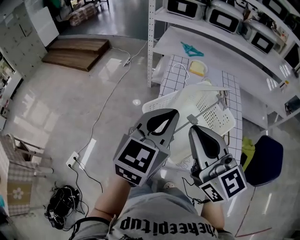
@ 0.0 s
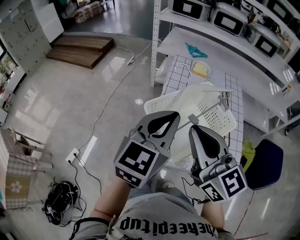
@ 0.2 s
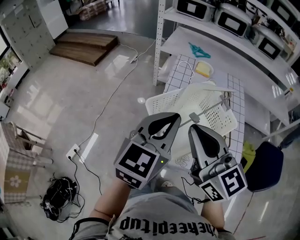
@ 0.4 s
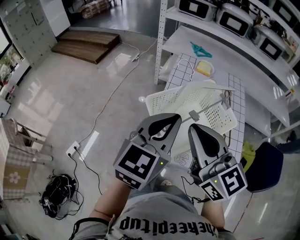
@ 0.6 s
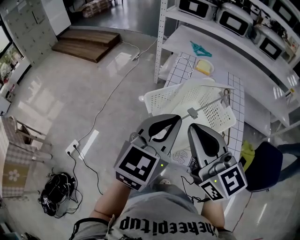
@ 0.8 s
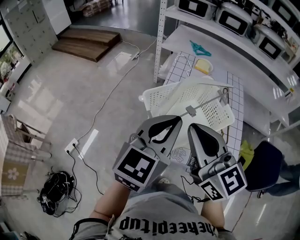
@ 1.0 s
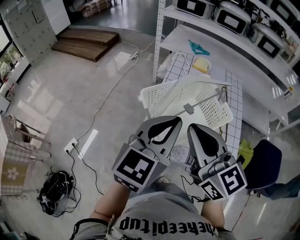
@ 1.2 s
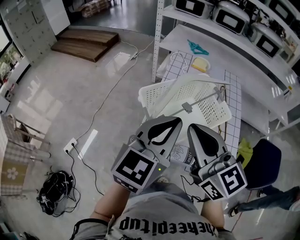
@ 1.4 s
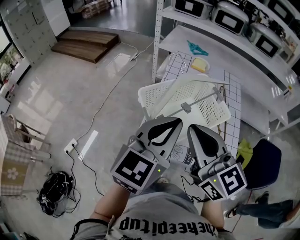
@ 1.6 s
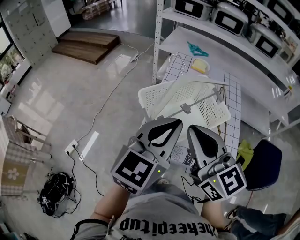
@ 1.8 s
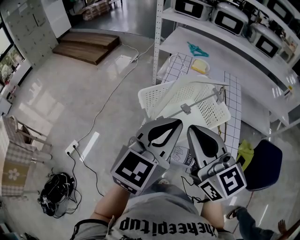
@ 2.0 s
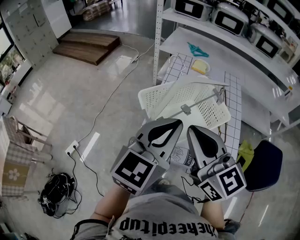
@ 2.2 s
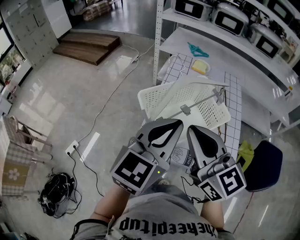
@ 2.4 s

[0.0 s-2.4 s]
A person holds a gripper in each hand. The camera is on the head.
0.0 to 1.2 s: The left gripper travels backward by some 5 cm.
1.2 to 2.4 s: The grippers stay close to where they were, moving slightly.

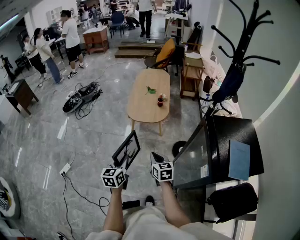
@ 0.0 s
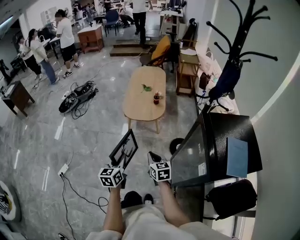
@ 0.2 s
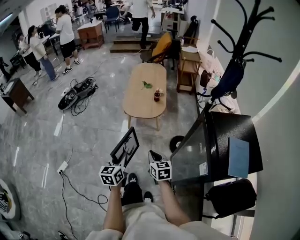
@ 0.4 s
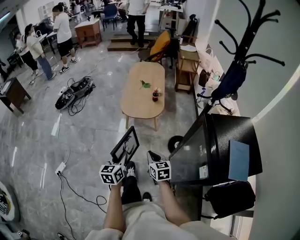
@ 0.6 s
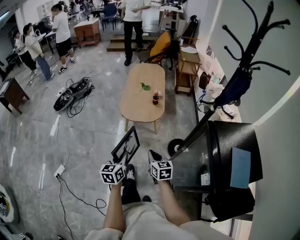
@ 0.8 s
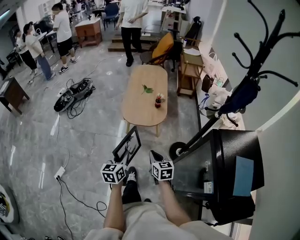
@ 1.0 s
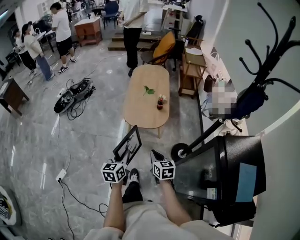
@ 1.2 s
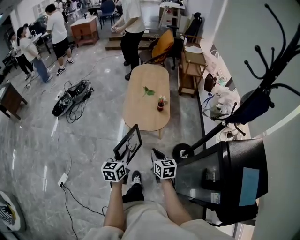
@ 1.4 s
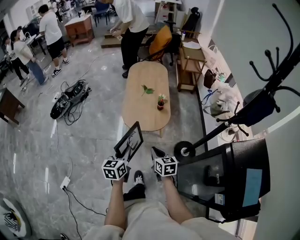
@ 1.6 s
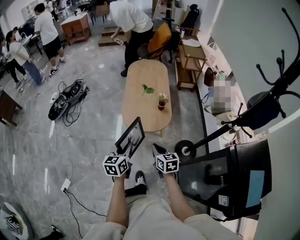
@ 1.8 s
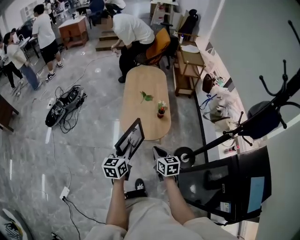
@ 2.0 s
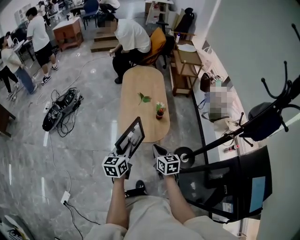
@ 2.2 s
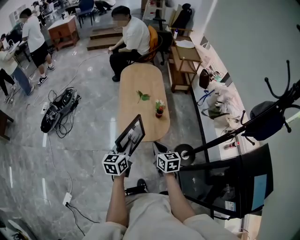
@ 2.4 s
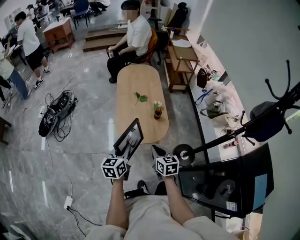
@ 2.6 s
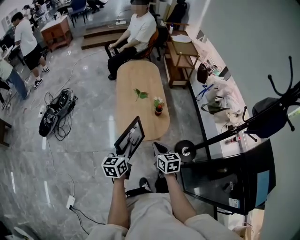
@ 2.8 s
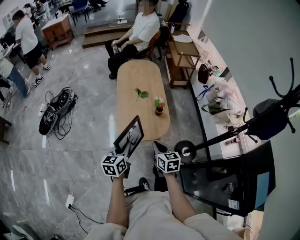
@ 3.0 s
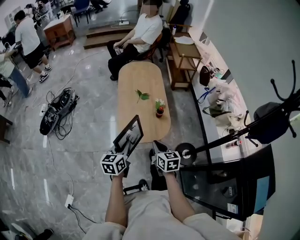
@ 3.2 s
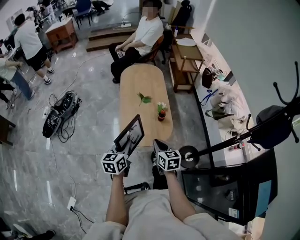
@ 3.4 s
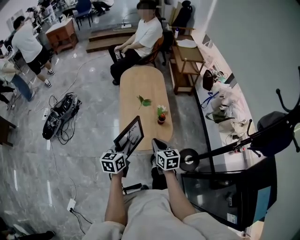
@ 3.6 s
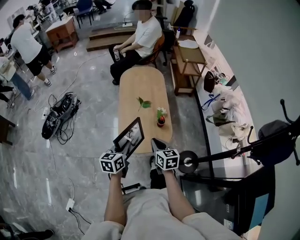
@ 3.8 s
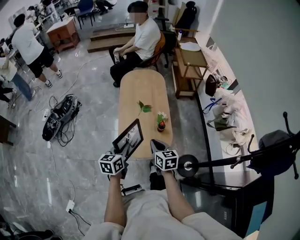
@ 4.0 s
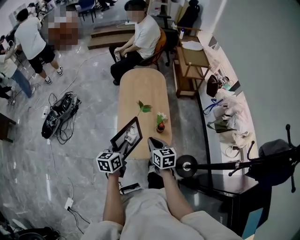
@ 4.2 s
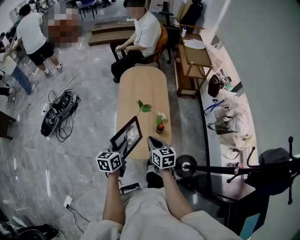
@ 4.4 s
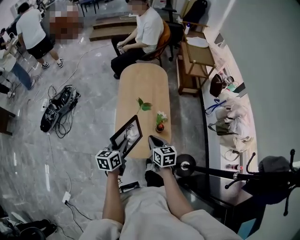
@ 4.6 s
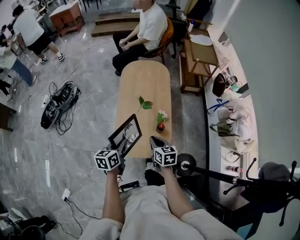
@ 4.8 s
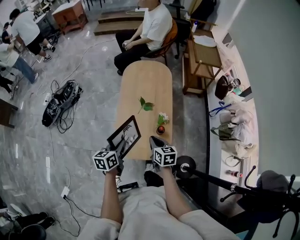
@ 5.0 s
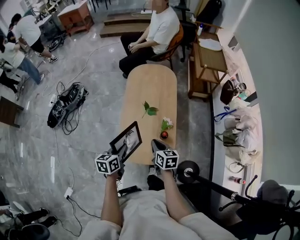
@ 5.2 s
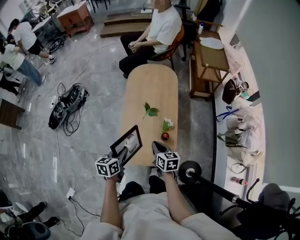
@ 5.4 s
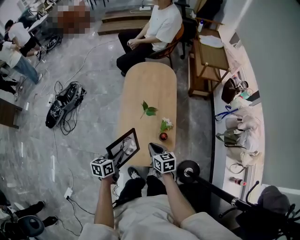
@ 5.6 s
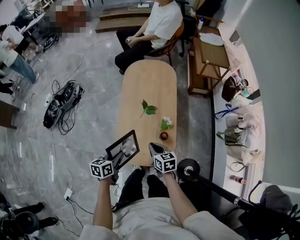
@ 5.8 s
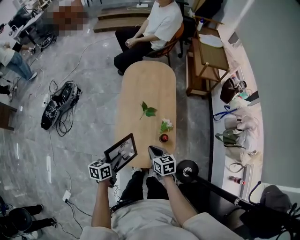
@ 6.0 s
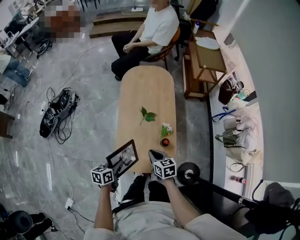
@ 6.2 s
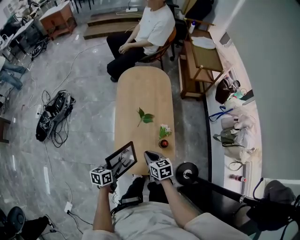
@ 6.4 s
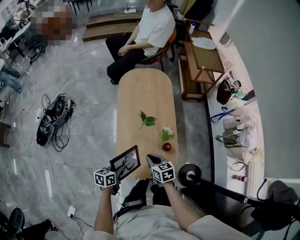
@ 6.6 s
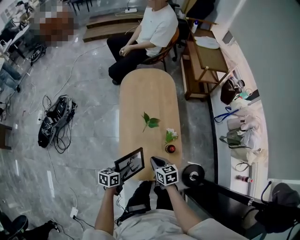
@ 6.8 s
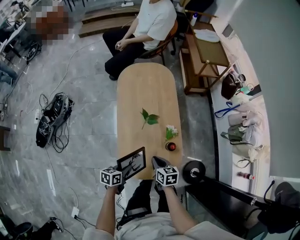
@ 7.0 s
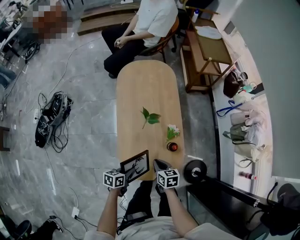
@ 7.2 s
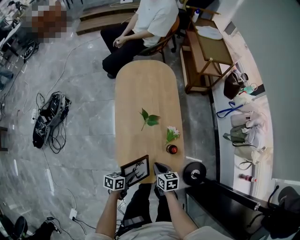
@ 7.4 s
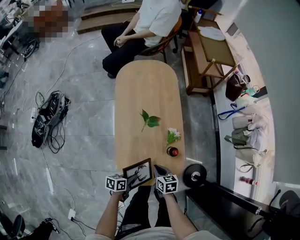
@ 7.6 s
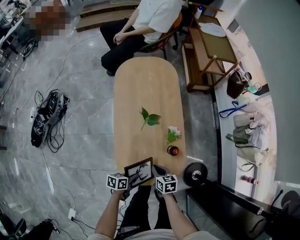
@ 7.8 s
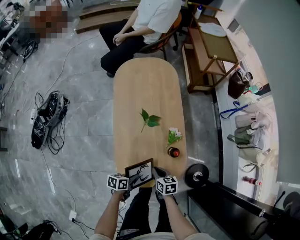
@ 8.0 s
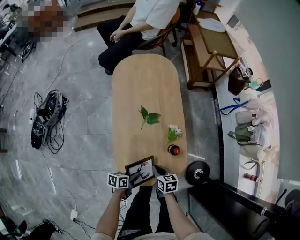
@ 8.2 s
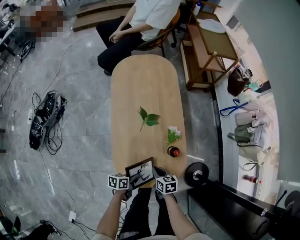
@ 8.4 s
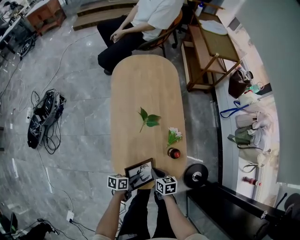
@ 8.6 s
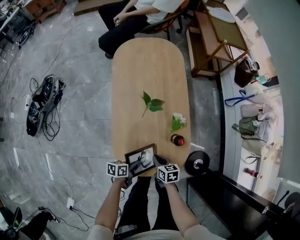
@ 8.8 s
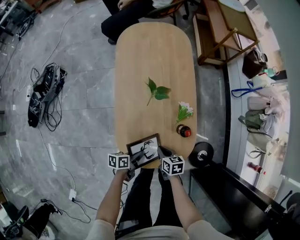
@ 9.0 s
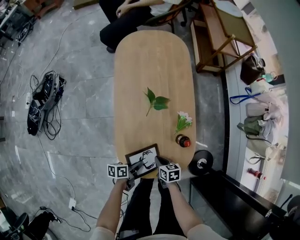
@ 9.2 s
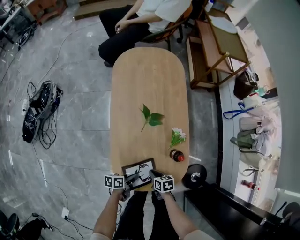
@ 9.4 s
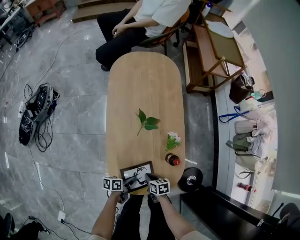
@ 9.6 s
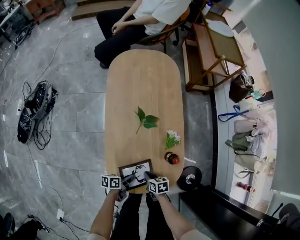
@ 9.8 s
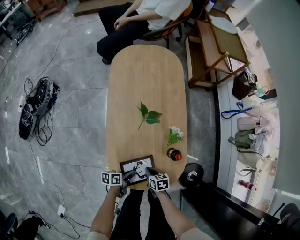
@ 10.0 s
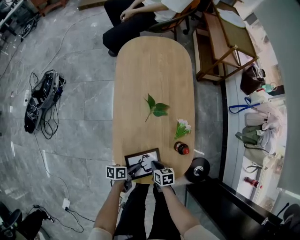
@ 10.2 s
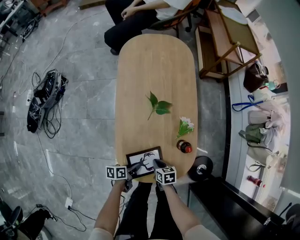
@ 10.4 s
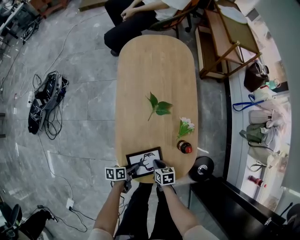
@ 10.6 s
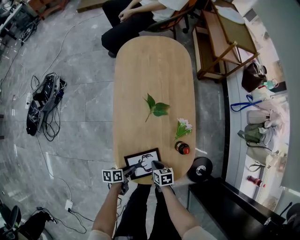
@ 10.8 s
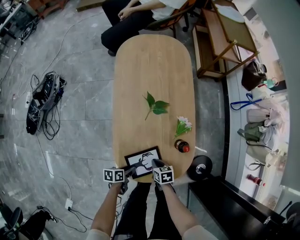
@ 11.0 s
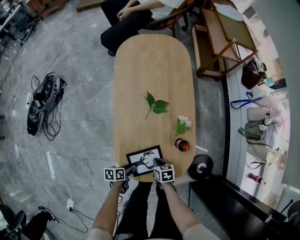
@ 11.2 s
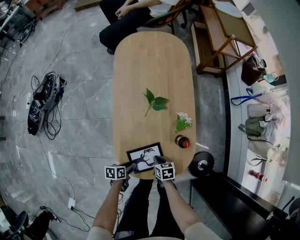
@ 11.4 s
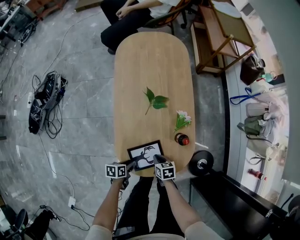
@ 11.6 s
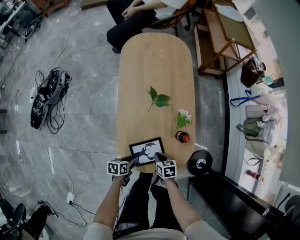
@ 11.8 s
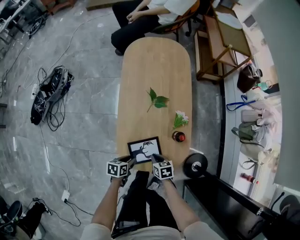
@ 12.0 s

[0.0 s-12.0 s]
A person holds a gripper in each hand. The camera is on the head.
0.0 to 1.6 s: Both grippers move forward, some 30 cm.
1.6 to 3.0 s: The two grippers go about 20 cm forward.
3.0 to 4.4 s: The grippers both shift forward by about 20 cm.
4.4 to 6.0 s: The grippers both shift downward and forward by some 15 cm.
6.0 to 7.6 s: The grippers both shift downward by approximately 20 cm. The left gripper swivels approximately 30 degrees.
7.6 to 9.0 s: Both grippers travel together downward, some 10 cm.
9.0 to 10.4 s: The right gripper shifts some 5 cm downward; the left gripper changes place by roughly 5 cm, and opens up.
10.4 to 12.0 s: Both grippers move upward, roughly 10 cm. The left gripper changes its angle by some 20 degrees.

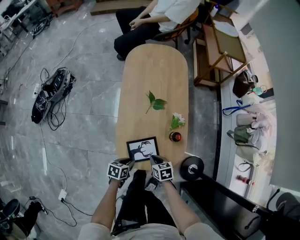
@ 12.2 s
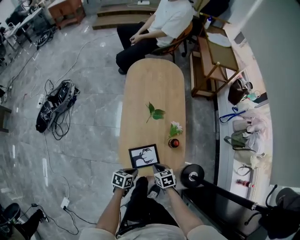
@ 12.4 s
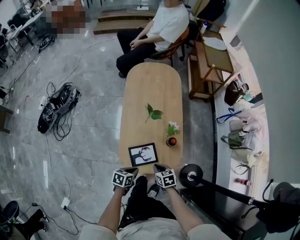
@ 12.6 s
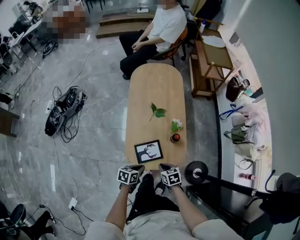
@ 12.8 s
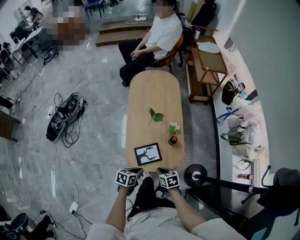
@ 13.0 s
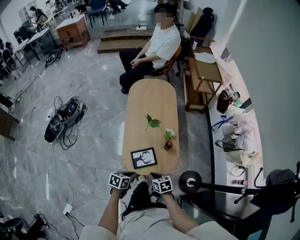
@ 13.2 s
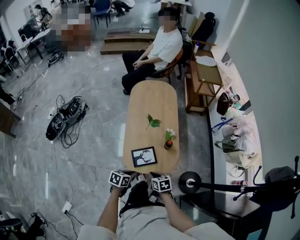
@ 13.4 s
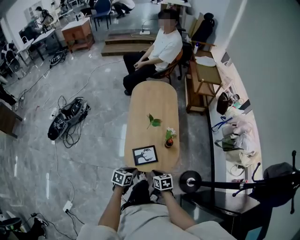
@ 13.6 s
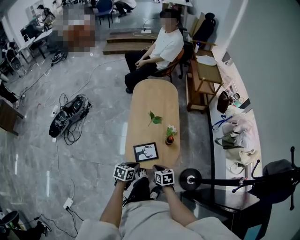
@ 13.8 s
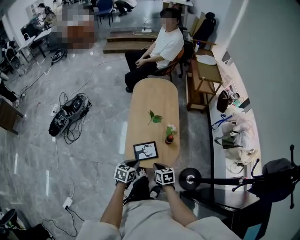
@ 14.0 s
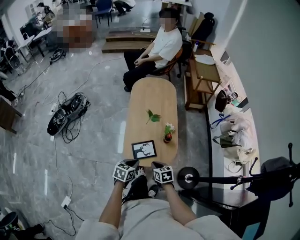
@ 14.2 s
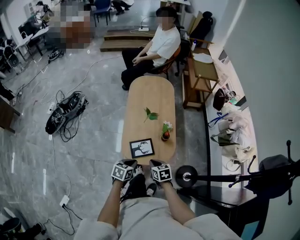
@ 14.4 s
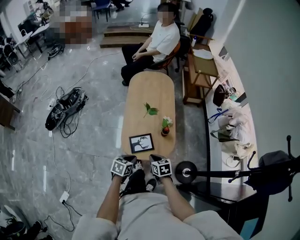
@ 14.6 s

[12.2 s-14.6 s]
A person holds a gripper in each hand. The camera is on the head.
12.2 to 13.4 s: Both grippers travel together upward and backward, about 25 cm.
13.4 to 14.6 s: The right gripper ends up roughly 5 cm from where it was.

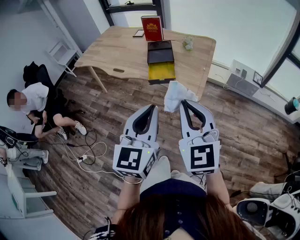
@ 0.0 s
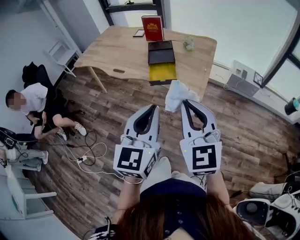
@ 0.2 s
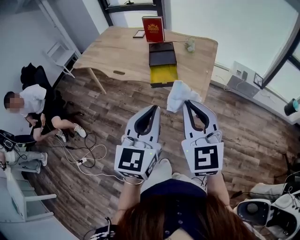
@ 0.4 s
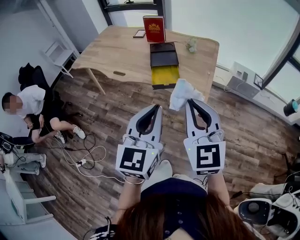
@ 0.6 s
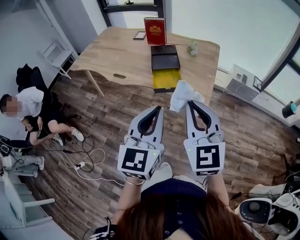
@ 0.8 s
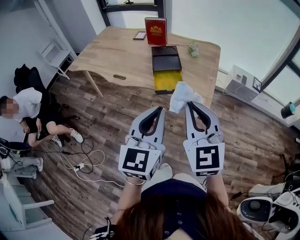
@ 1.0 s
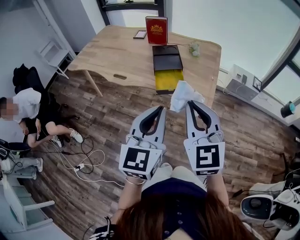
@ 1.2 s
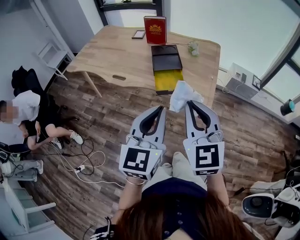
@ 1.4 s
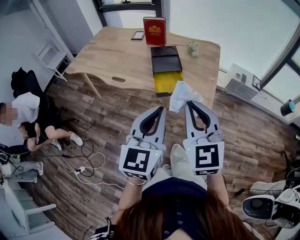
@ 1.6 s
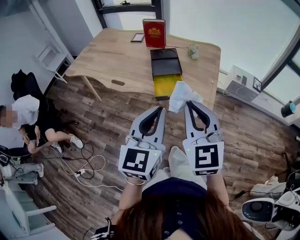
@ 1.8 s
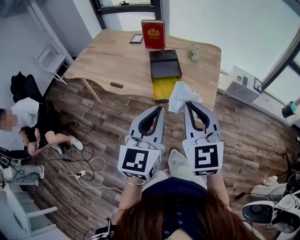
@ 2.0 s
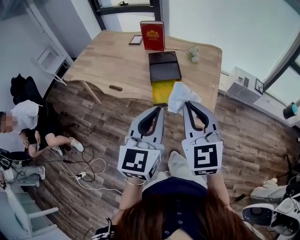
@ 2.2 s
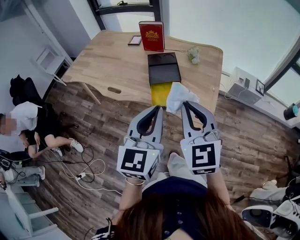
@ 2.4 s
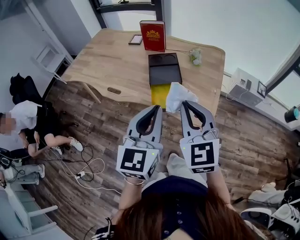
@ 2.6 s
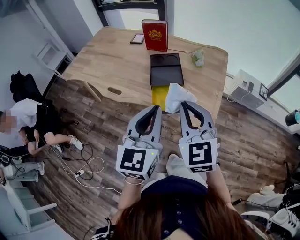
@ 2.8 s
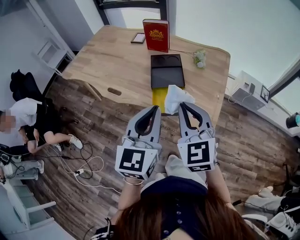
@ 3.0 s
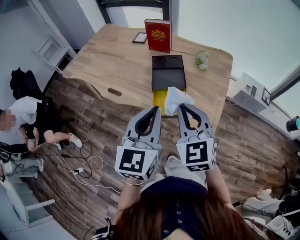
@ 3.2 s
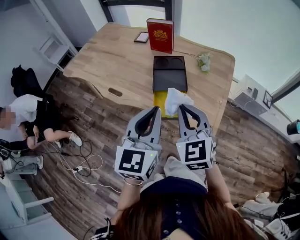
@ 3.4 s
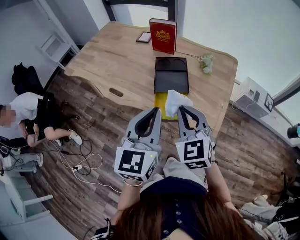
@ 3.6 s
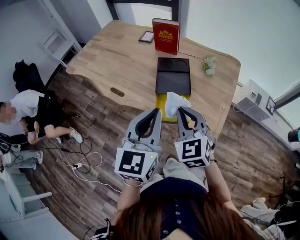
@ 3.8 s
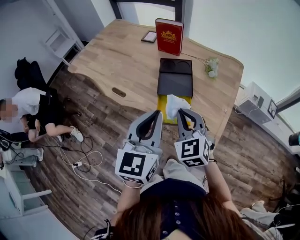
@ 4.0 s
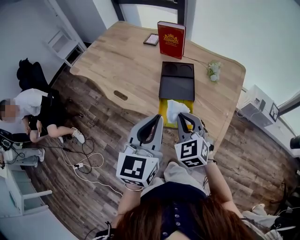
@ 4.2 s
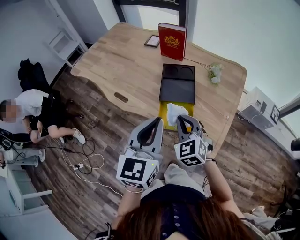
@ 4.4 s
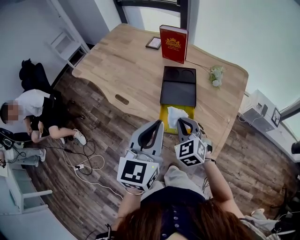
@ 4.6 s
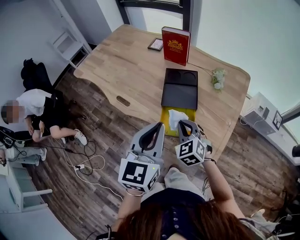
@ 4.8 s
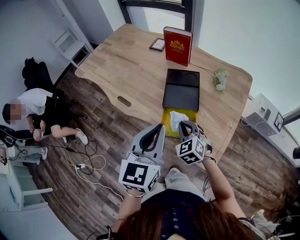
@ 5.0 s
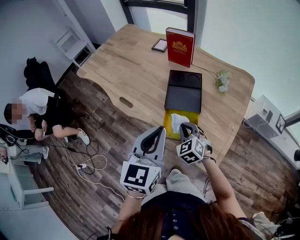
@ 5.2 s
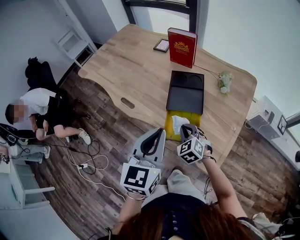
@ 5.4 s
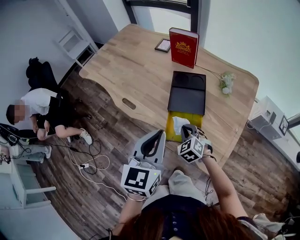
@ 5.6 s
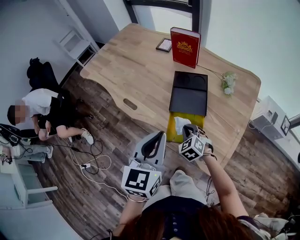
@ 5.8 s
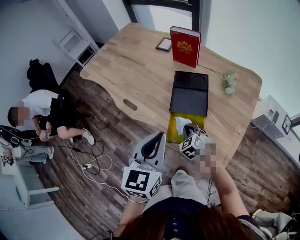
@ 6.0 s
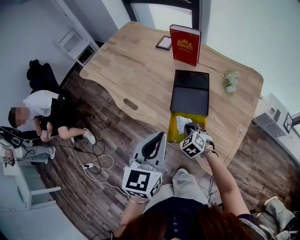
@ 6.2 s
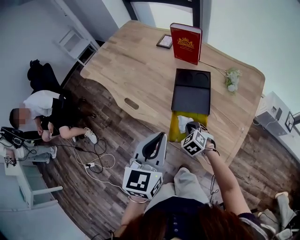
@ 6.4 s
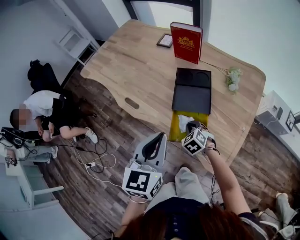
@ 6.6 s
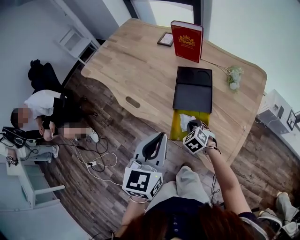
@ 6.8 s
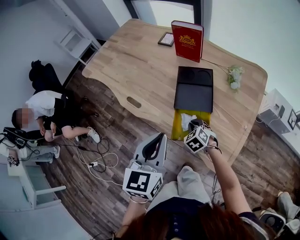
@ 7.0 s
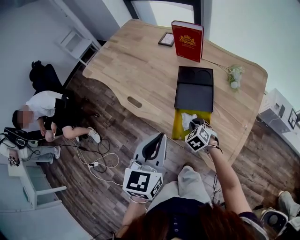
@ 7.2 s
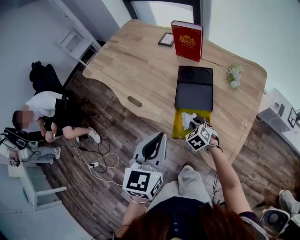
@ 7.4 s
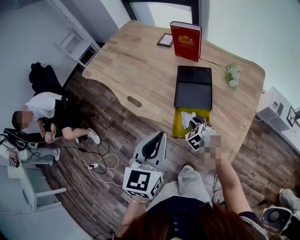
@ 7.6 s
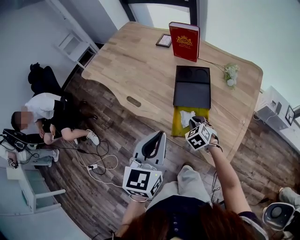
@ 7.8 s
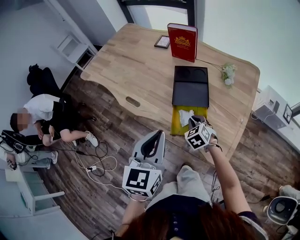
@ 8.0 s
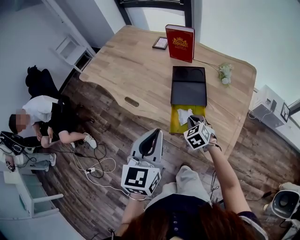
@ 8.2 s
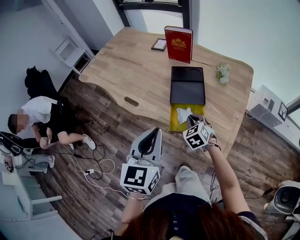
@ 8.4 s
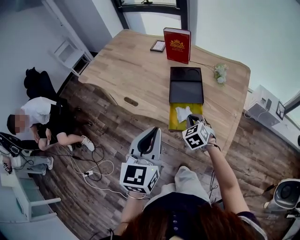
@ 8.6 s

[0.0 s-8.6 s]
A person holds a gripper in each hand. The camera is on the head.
0.0 to 1.4 s: The two grippers go about 15 cm forward and to the left.
1.4 to 2.8 s: Both grippers move forward, some 15 cm.
2.8 to 4.4 s: The right gripper is displaced downward and forward by roughly 20 cm, and turns by approximately 20 degrees; the left gripper is displaced forward by some 10 cm.
4.4 to 5.8 s: The right gripper heads downward, covering about 15 cm.
5.8 to 7.2 s: The grippers move only a little.
7.2 to 8.6 s: The left gripper shifts roughly 5 cm backward. The right gripper is displaced upward by approximately 10 cm.
